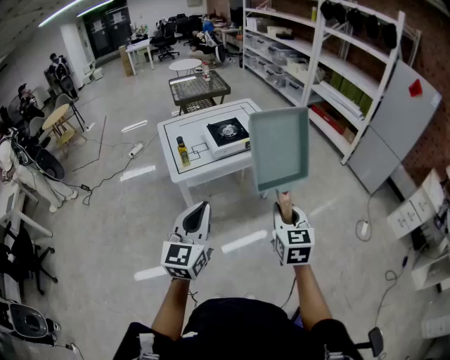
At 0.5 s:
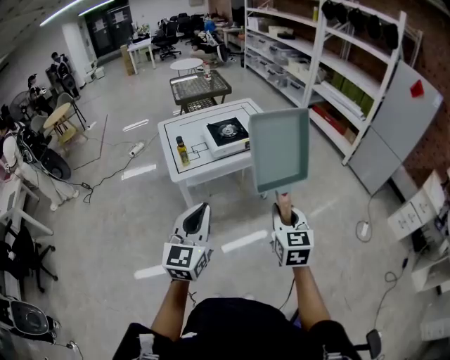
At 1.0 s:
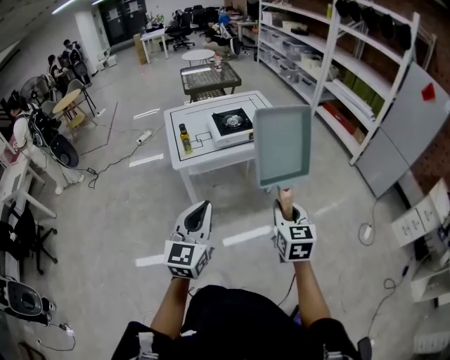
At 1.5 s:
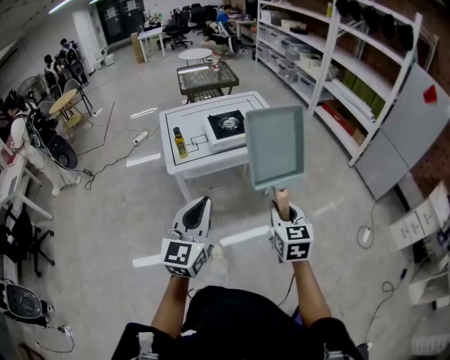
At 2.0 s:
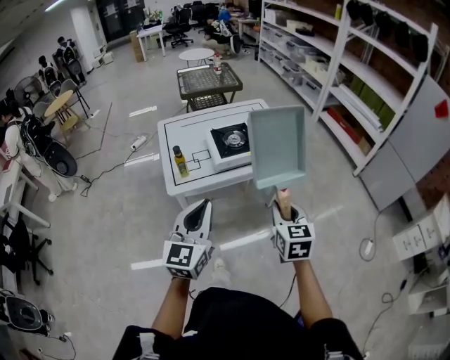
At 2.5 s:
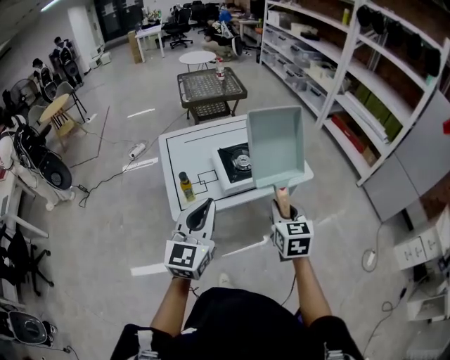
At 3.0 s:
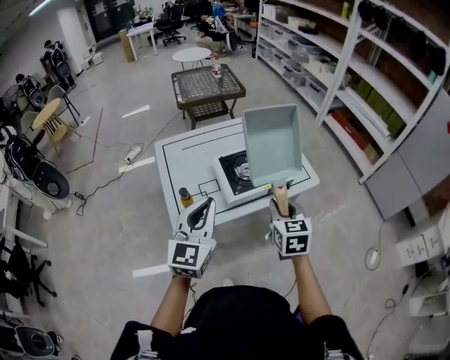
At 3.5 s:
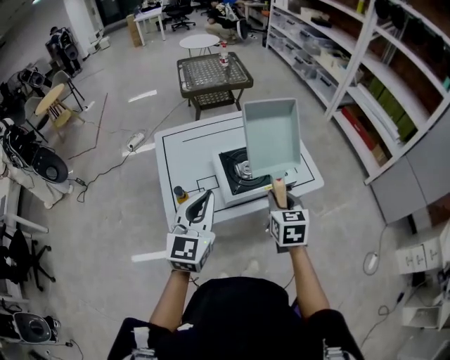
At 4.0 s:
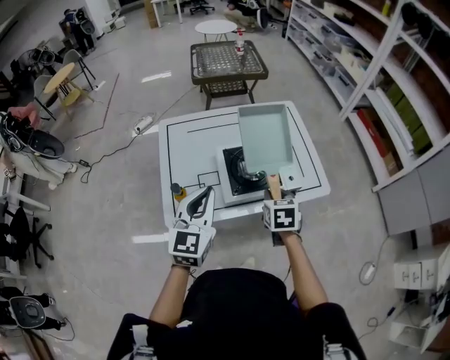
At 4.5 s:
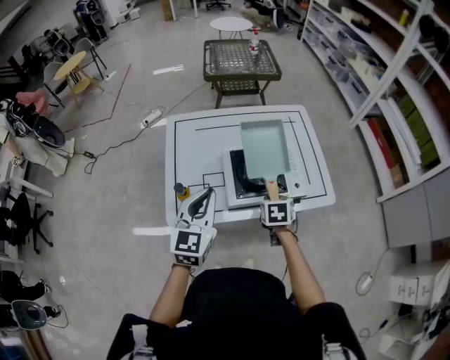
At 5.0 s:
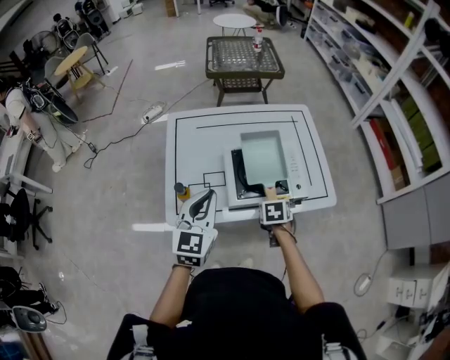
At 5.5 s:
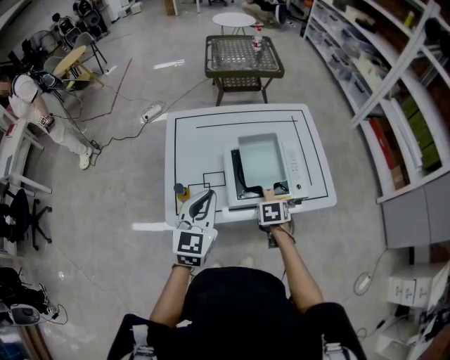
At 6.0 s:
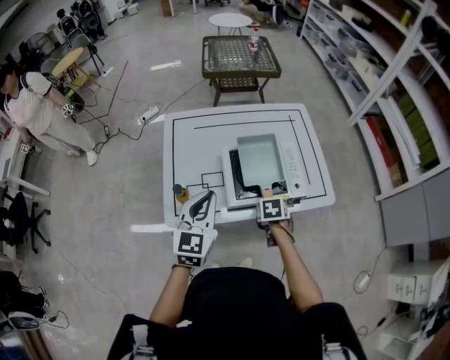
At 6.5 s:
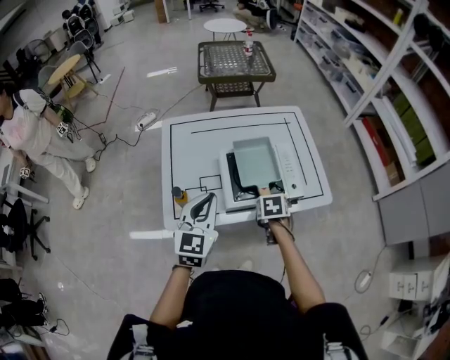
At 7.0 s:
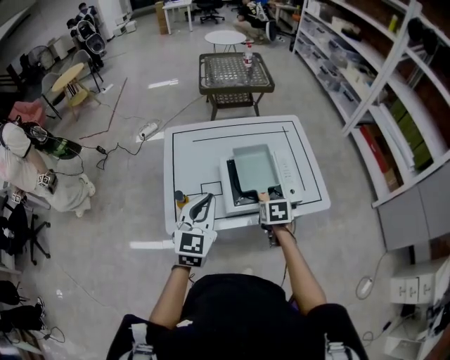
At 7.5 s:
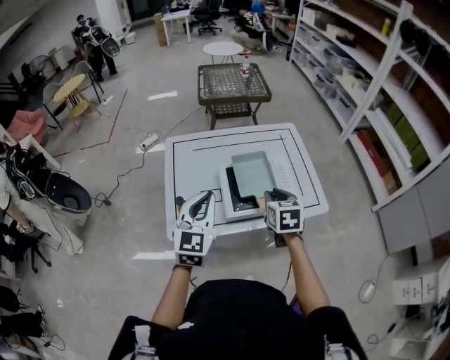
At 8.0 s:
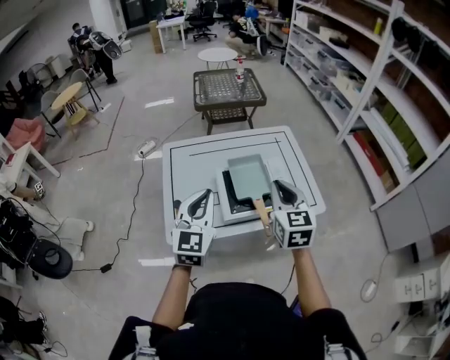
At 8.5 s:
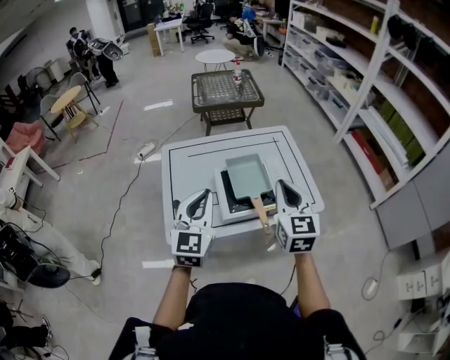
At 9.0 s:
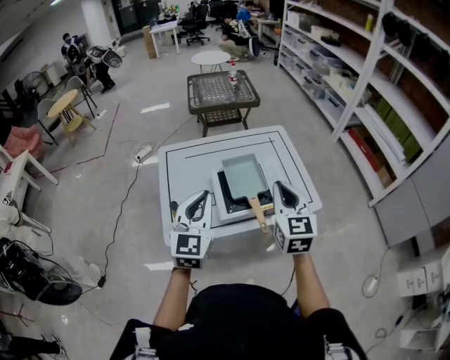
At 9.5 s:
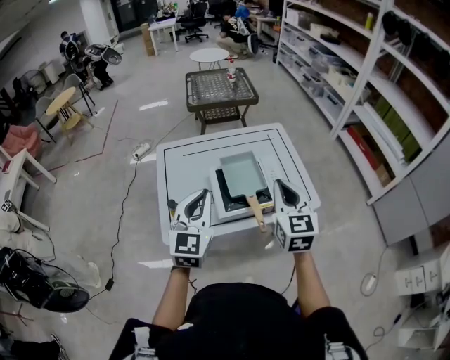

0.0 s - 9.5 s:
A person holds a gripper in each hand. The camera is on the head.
0.0 s - 2.0 s: Both grippers travel together forward, about 15 cm.
2.0 s - 4.0 s: The grippers both shift forward by some 30 cm. The right gripper changes its angle by approximately 20 degrees.
4.0 s - 5.5 s: The right gripper goes approximately 15 cm downward, and rotates about 20 degrees.
5.5 s - 7.5 s: The right gripper travels upward by some 20 cm, and turns by roughly 30 degrees, while the left gripper heads upward, covering roughly 5 cm.
7.5 s - 9.5 s: The right gripper heads upward, covering about 15 cm, swivels about 30 degrees, and closes its fingers.

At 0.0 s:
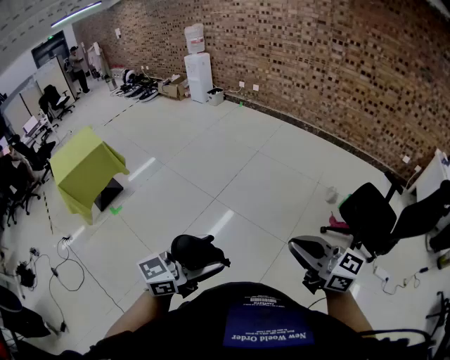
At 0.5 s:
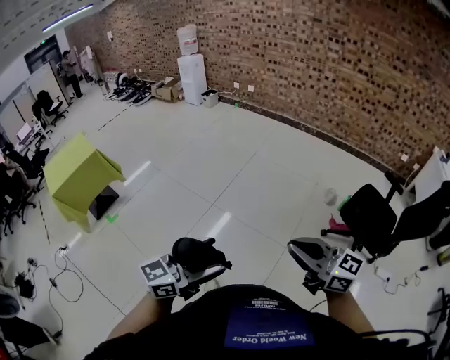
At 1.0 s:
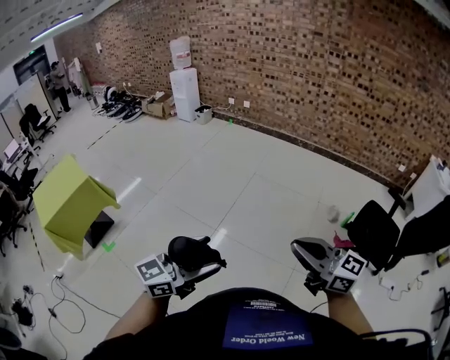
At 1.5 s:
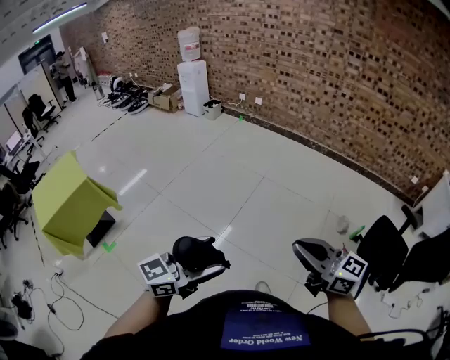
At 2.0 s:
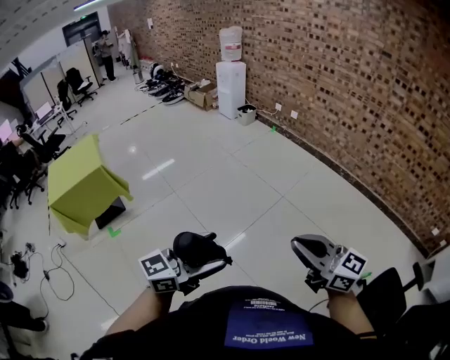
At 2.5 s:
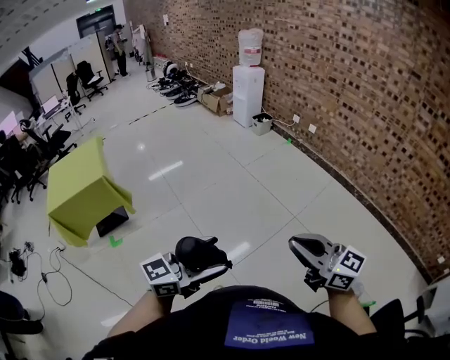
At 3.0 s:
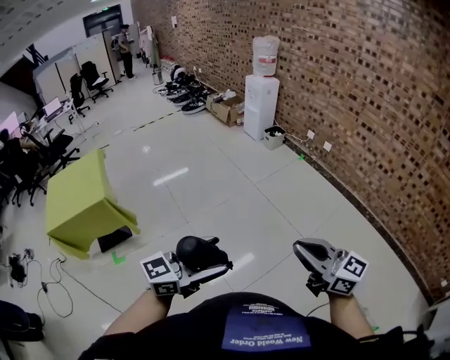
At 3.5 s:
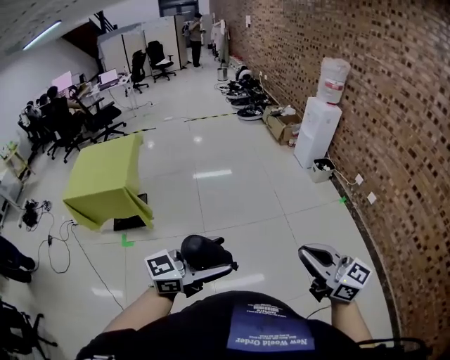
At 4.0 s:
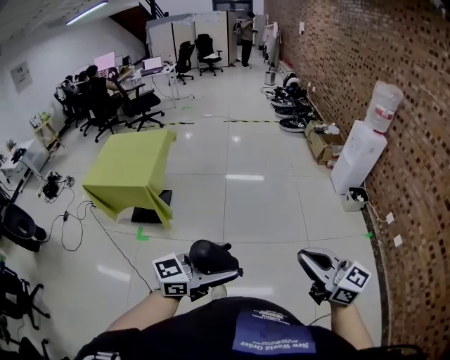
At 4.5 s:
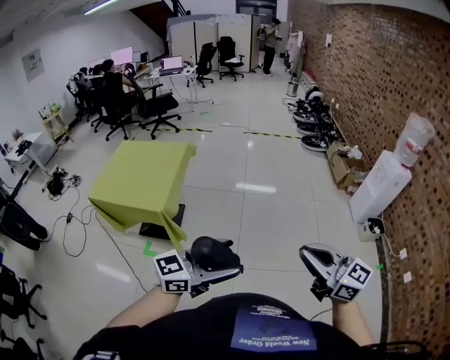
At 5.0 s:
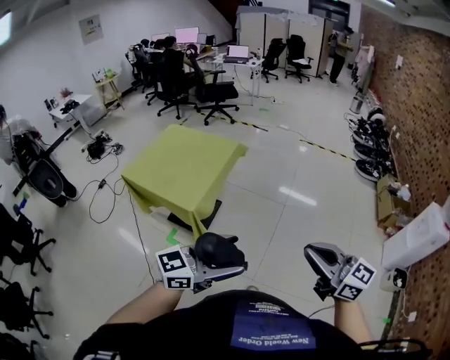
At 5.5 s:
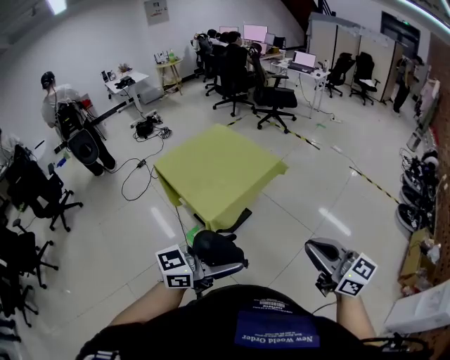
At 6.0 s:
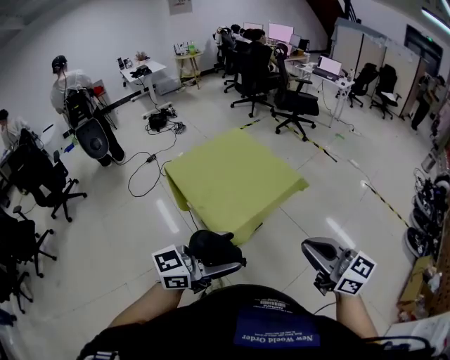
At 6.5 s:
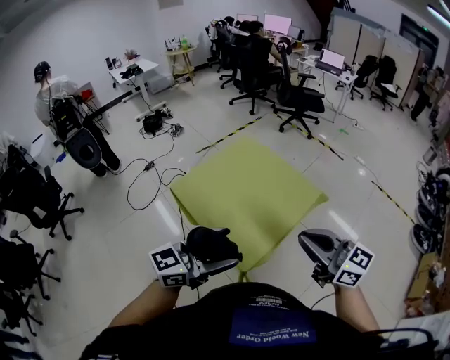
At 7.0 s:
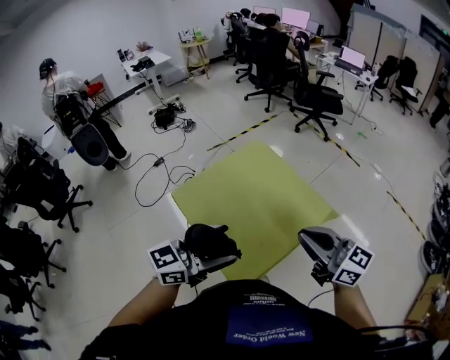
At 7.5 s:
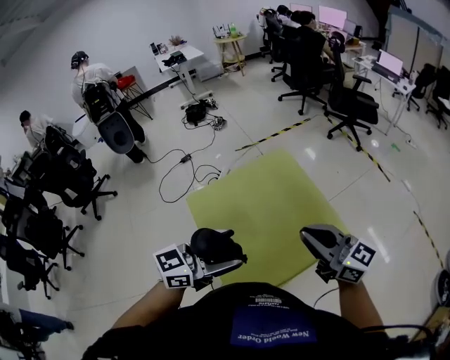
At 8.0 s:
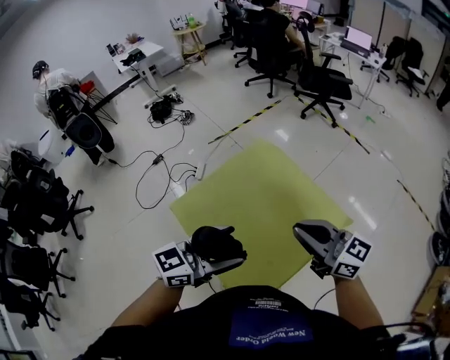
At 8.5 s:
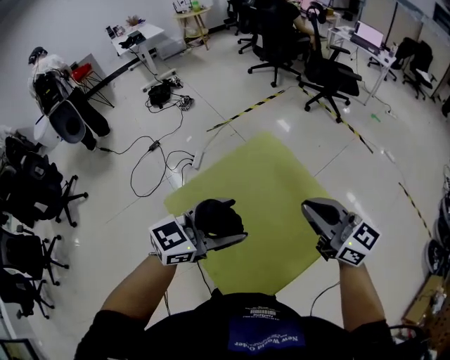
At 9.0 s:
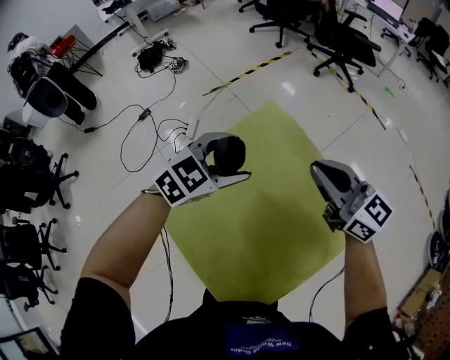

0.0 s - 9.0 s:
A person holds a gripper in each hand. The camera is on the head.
0.0 s - 2.0 s: Both grippers are carried forward, about 50 cm.
2.0 s - 4.5 s: Both grippers are carried about 90 cm. The right gripper swivels approximately 40 degrees; the left gripper changes its angle by approximately 40 degrees.
4.5 s - 7.0 s: Both grippers are carried approximately 70 cm. The left gripper changes its angle by about 50 degrees. Meanwhile the right gripper changes its angle by about 50 degrees.
7.0 s - 9.0 s: The right gripper is displaced forward by about 35 cm, while the left gripper heads forward and downward, covering some 40 cm, and angles its fingers downward, by some 30 degrees.

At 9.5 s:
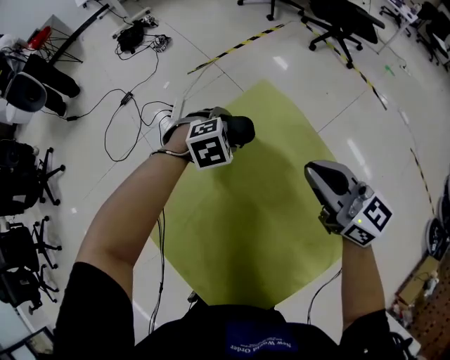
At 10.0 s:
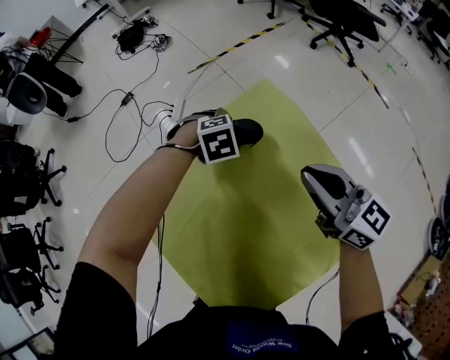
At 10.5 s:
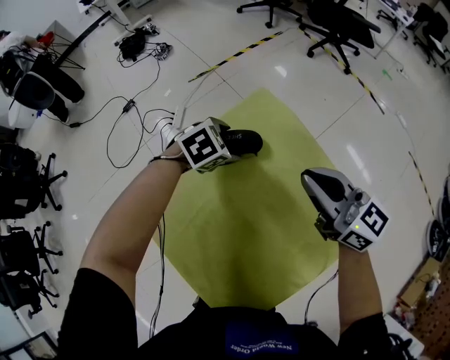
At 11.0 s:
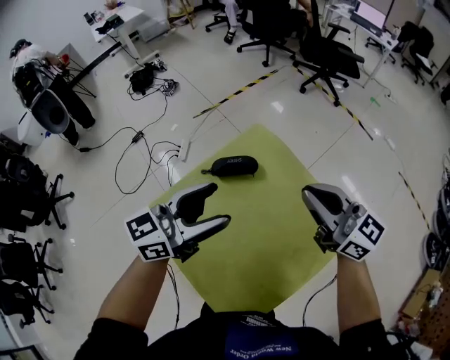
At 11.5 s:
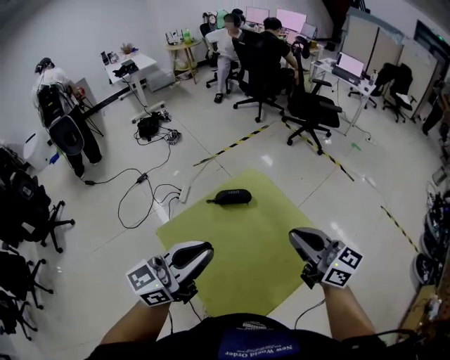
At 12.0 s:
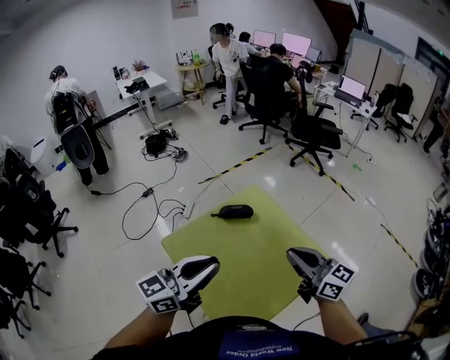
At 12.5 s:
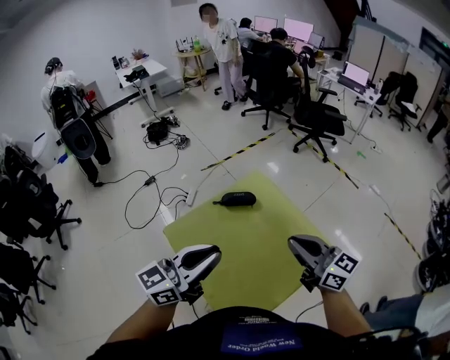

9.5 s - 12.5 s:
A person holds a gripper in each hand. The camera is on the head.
9.5 s - 11.0 s: The right gripper goes roughly 15 cm upward and backward. The left gripper is displaced upward and backward by approximately 35 cm, and angles its fingers upward, by some 70 degrees.
11.0 s - 12.5 s: The right gripper shifts approximately 15 cm backward; the left gripper travels backward and upward by roughly 20 cm, and closes.

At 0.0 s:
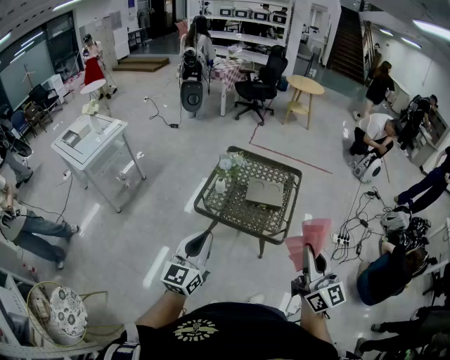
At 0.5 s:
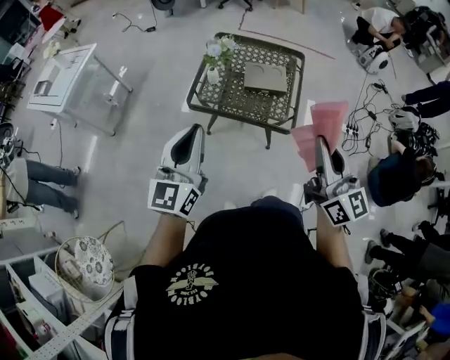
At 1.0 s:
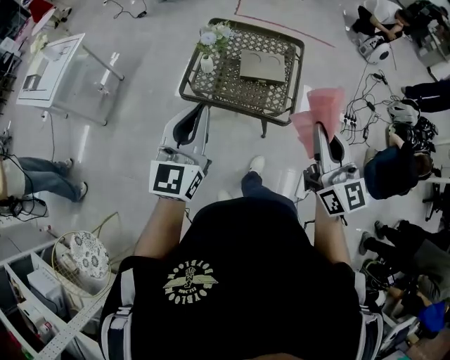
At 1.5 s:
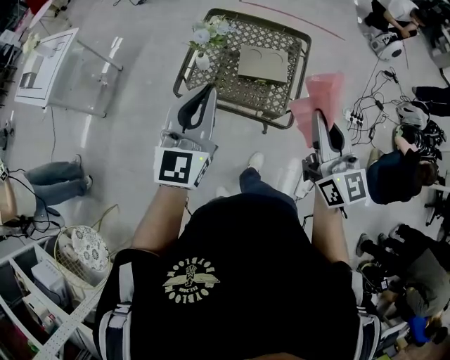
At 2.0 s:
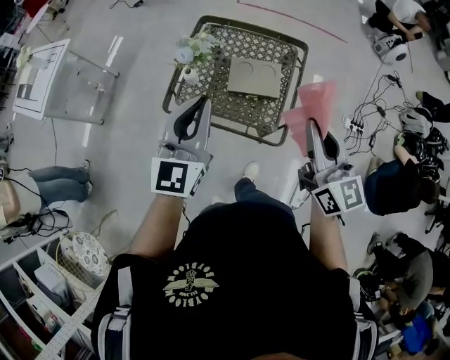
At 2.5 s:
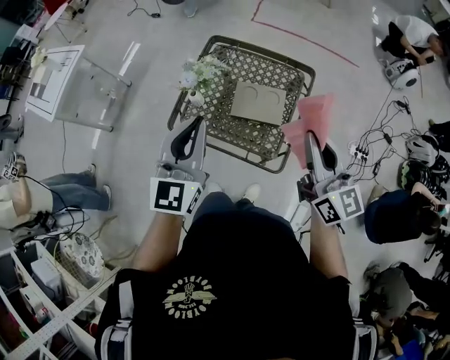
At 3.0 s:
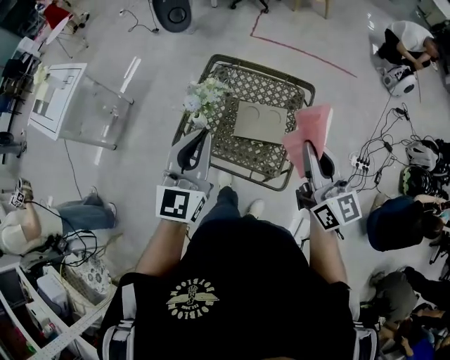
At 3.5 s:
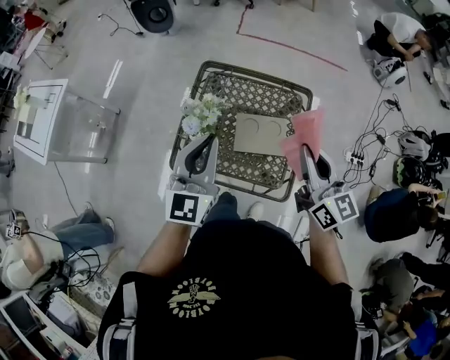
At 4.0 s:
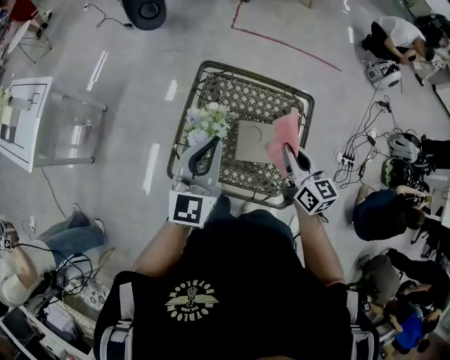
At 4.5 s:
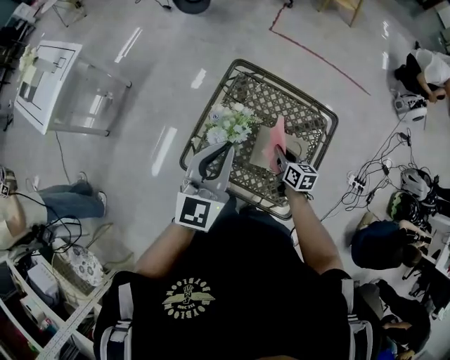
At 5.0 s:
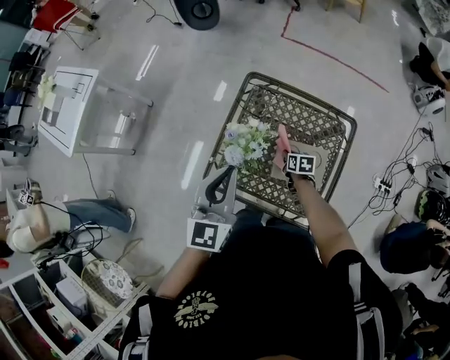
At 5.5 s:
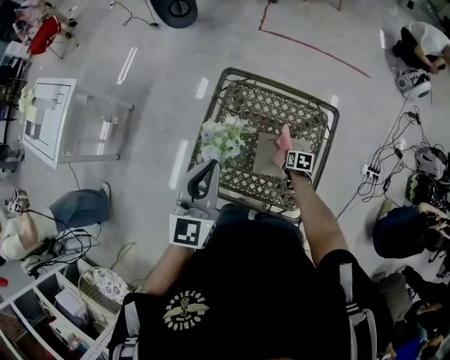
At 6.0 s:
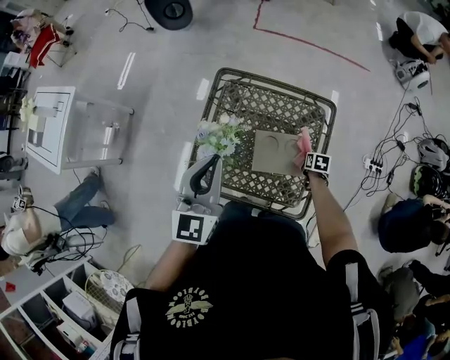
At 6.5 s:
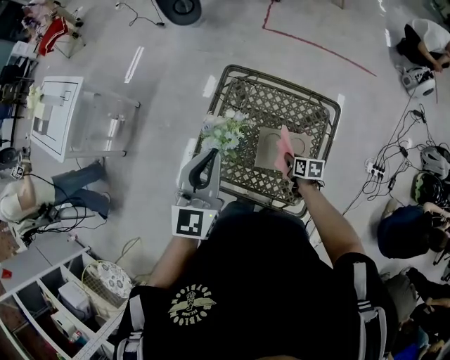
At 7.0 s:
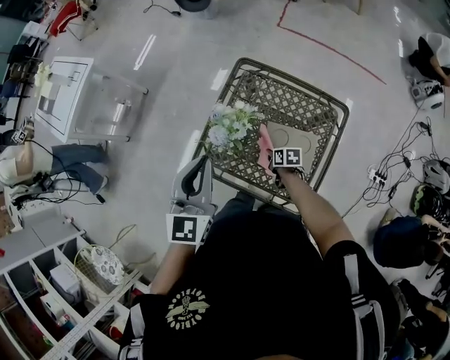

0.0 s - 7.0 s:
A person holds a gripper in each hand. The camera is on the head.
0.0 s - 2.0 s: The right gripper shifts some 35 cm forward; the left gripper is displaced forward and to the right by about 35 cm.
2.0 s - 3.5 s: The two grippers go some 20 cm forward.
3.5 s - 5.0 s: The left gripper goes approximately 10 cm to the left and forward. Meanwhile the right gripper shifts some 40 cm downward, and points its fingers about 50 degrees further downward.
